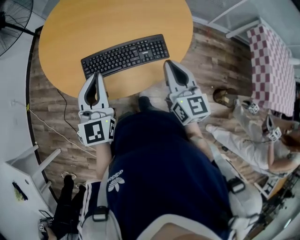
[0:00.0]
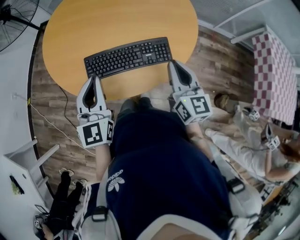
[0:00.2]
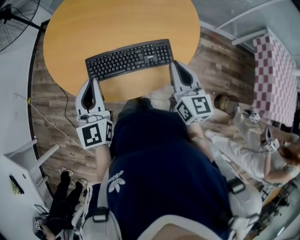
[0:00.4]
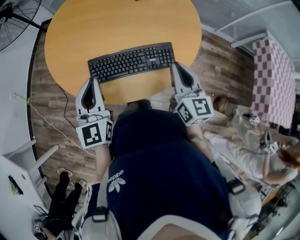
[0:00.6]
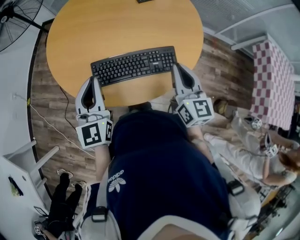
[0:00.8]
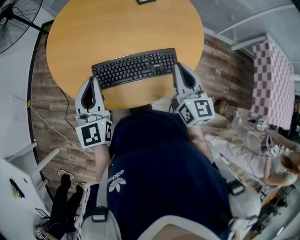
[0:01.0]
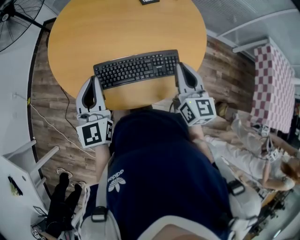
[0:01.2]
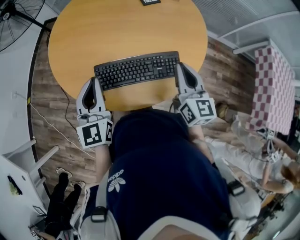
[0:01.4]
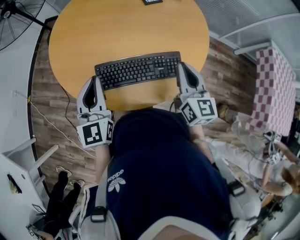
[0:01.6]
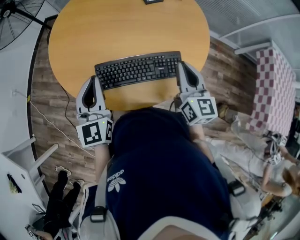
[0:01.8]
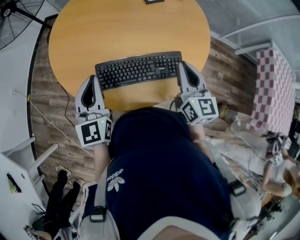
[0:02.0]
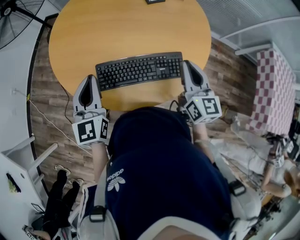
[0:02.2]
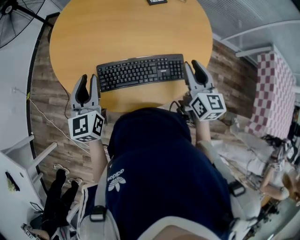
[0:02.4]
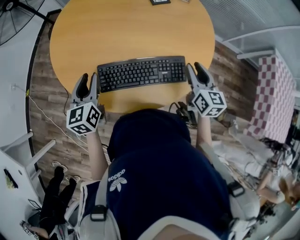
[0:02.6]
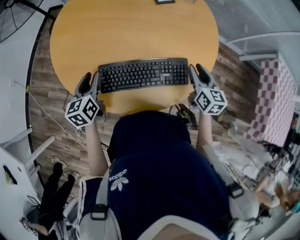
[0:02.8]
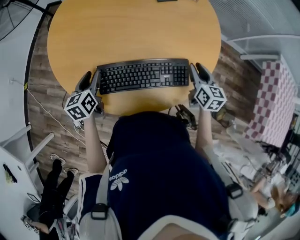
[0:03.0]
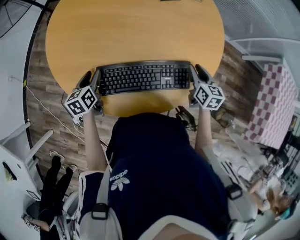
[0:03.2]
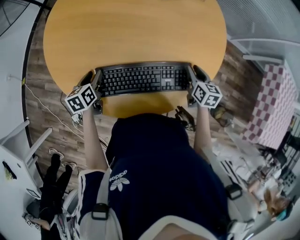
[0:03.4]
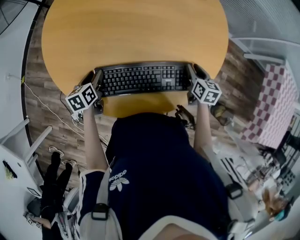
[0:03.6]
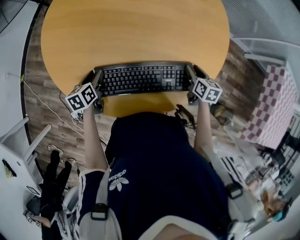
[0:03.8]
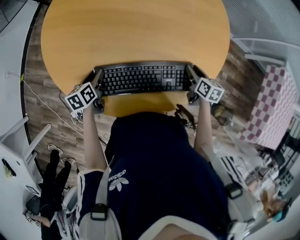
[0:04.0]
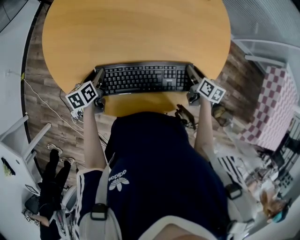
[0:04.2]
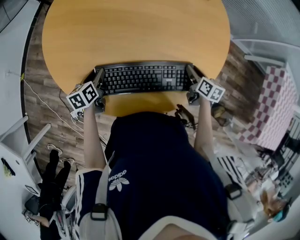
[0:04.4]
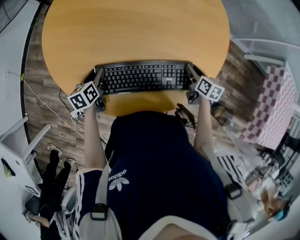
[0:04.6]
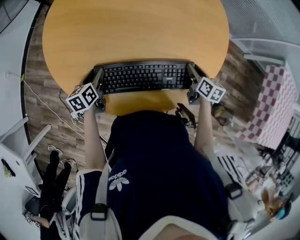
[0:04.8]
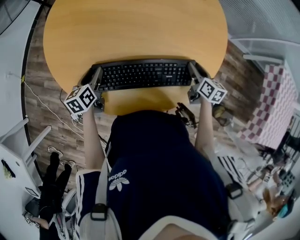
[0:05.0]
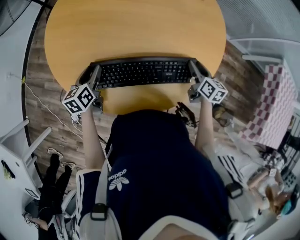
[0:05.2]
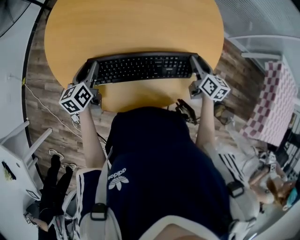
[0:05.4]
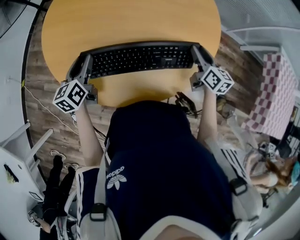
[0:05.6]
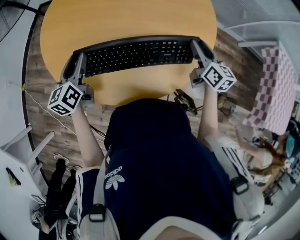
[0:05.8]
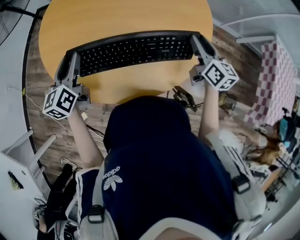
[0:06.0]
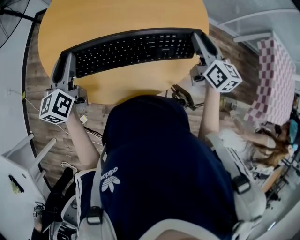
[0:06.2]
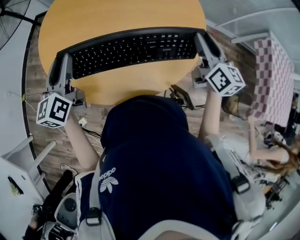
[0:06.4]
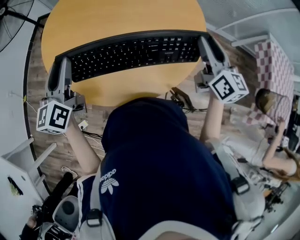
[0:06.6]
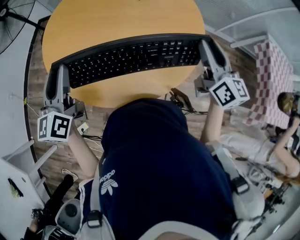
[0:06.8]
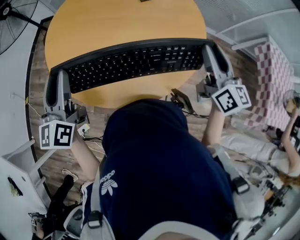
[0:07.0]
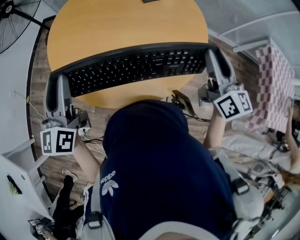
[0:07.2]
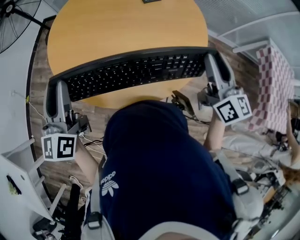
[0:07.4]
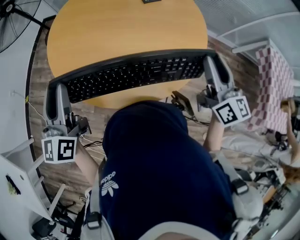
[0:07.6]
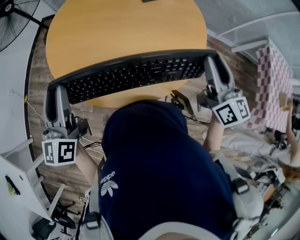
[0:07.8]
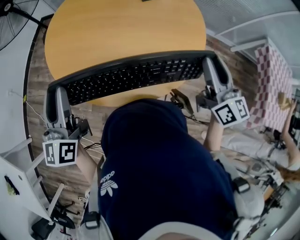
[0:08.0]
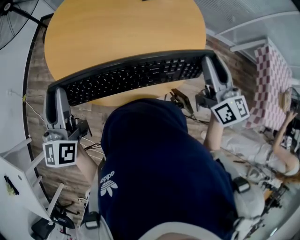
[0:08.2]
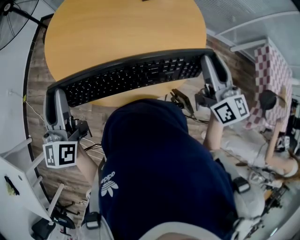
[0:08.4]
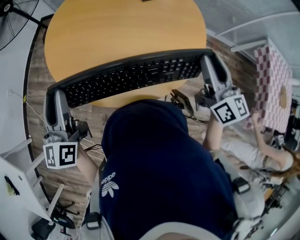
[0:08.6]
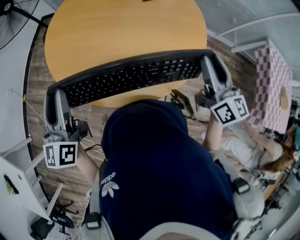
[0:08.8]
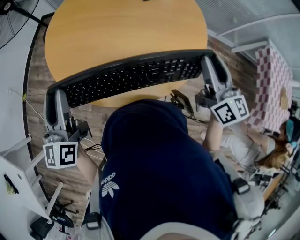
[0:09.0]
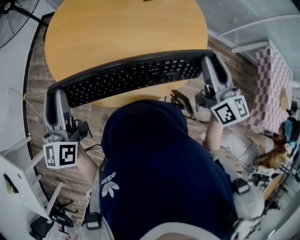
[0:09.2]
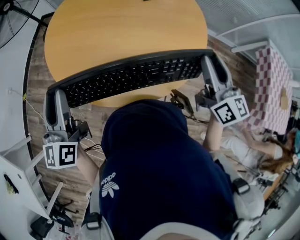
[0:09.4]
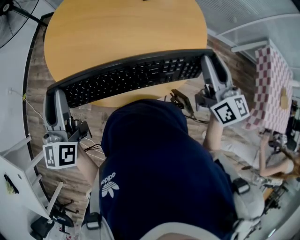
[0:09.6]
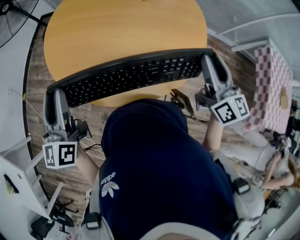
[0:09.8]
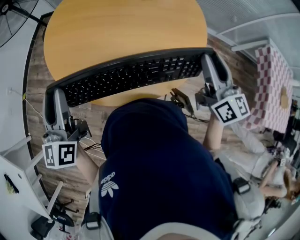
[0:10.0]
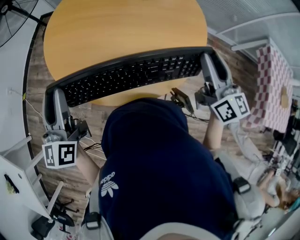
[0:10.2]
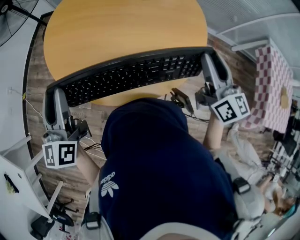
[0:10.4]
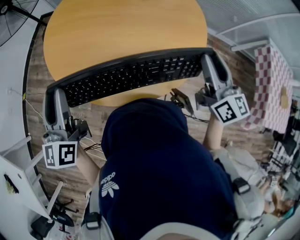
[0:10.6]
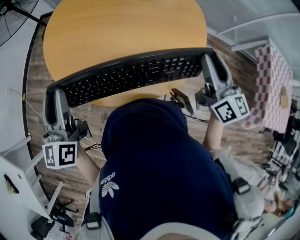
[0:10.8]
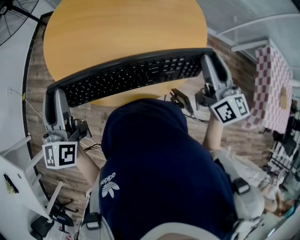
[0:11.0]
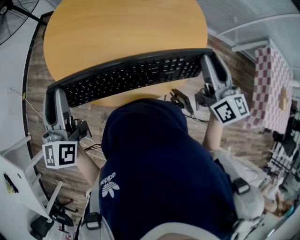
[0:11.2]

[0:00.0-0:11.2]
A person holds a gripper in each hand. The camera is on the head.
0:00.0 to 0:01.6: The right gripper shifts roughly 10 cm forward; the left gripper travels forward and to the left by roughly 10 cm.
0:01.6 to 0:03.2: The left gripper goes about 25 cm downward, angles its fingers downward, by some 30 degrees, and opens up, while the right gripper is displaced downward, forward and to the right by about 20 cm, rotates approximately 30 degrees, and opens.
0:03.2 to 0:04.8: The right gripper heads downward, covering some 5 cm.
0:04.8 to 0:06.4: The grippers both shift upward by approximately 25 cm. The left gripper tilts its fingers some 30 degrees upward, while the right gripper angles its fingers upward, by roughly 30 degrees.
0:06.4 to 0:08.0: The left gripper shifts some 10 cm backward and upward. The right gripper travels backward by approximately 5 cm.
0:08.0 to 0:11.2: Neither gripper changes place.

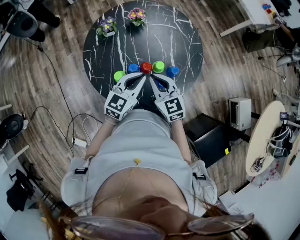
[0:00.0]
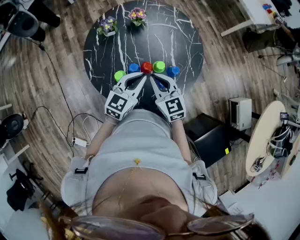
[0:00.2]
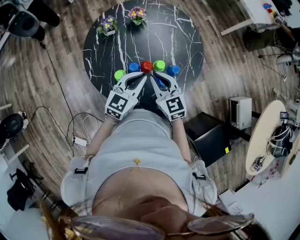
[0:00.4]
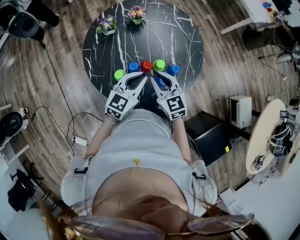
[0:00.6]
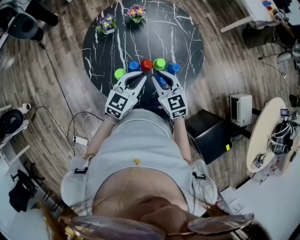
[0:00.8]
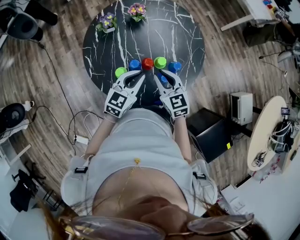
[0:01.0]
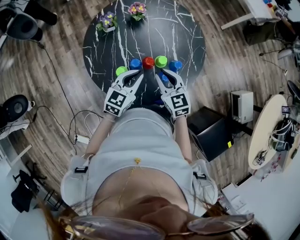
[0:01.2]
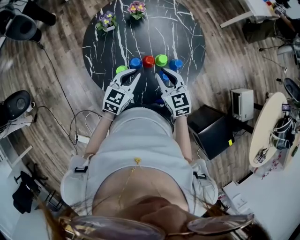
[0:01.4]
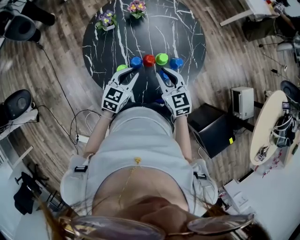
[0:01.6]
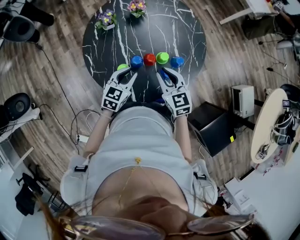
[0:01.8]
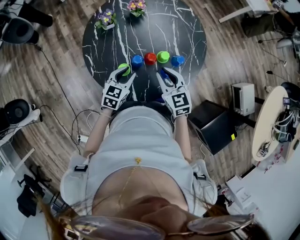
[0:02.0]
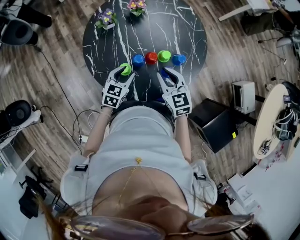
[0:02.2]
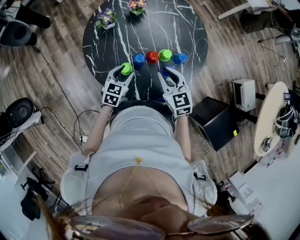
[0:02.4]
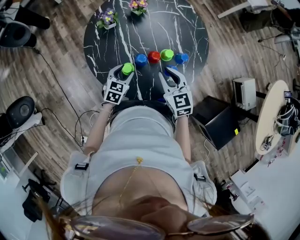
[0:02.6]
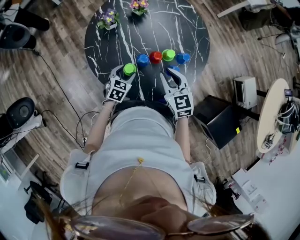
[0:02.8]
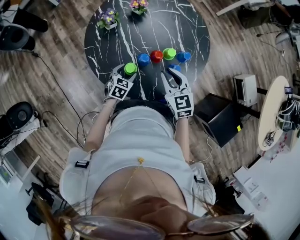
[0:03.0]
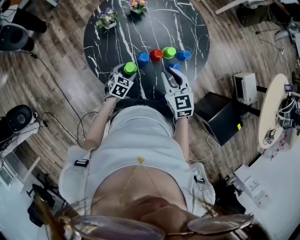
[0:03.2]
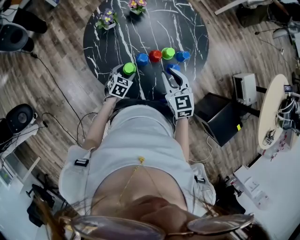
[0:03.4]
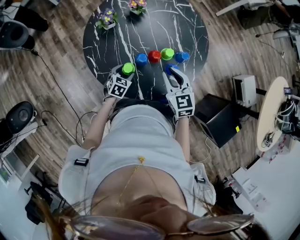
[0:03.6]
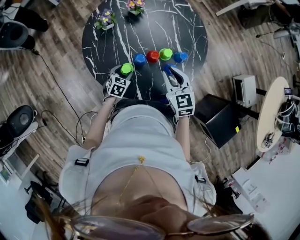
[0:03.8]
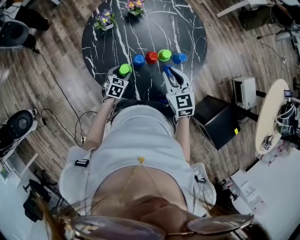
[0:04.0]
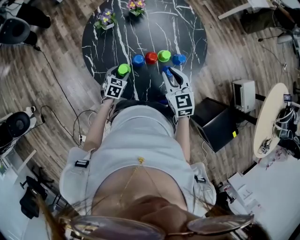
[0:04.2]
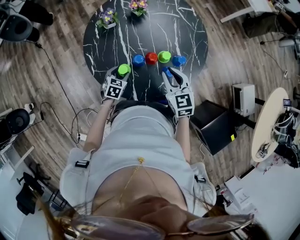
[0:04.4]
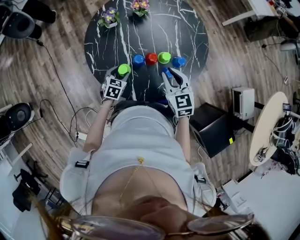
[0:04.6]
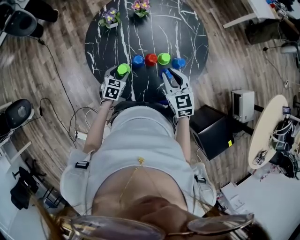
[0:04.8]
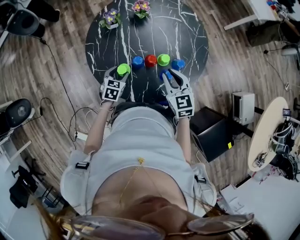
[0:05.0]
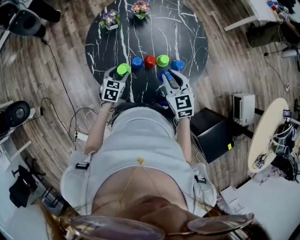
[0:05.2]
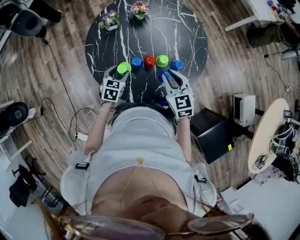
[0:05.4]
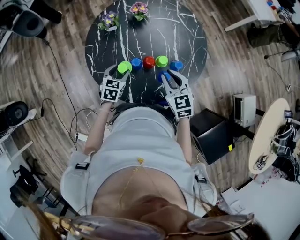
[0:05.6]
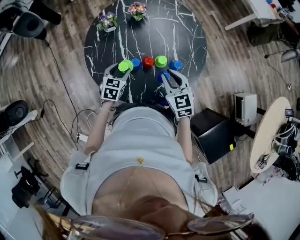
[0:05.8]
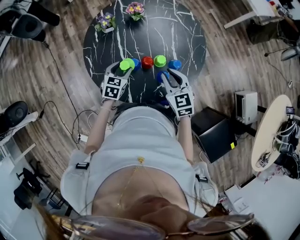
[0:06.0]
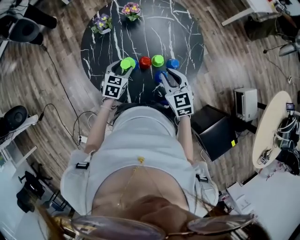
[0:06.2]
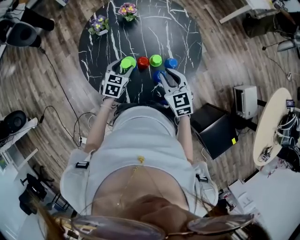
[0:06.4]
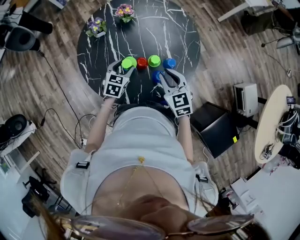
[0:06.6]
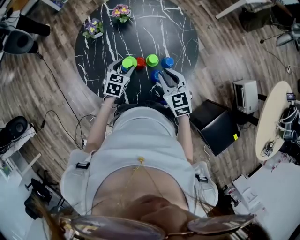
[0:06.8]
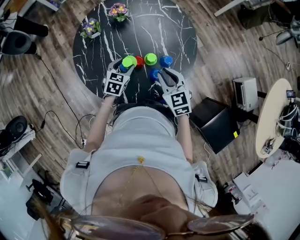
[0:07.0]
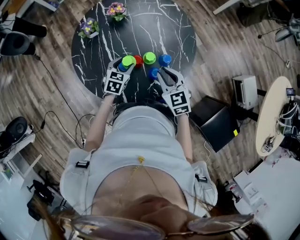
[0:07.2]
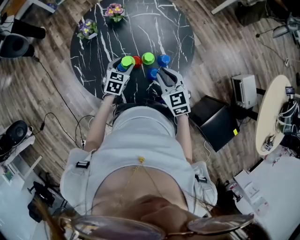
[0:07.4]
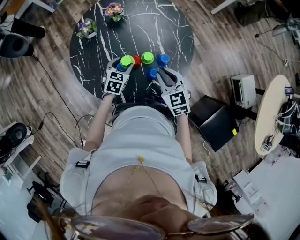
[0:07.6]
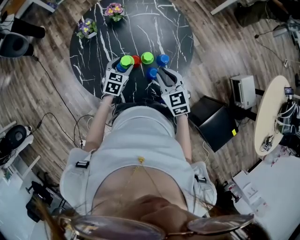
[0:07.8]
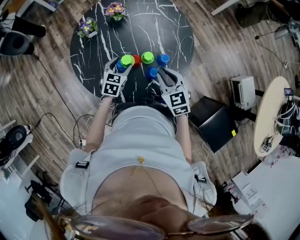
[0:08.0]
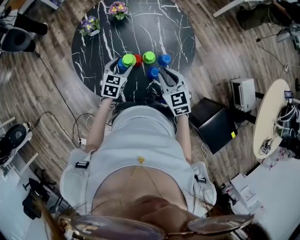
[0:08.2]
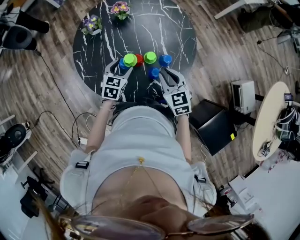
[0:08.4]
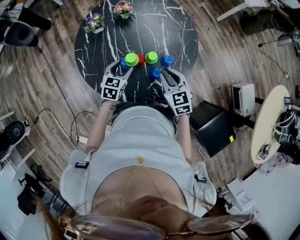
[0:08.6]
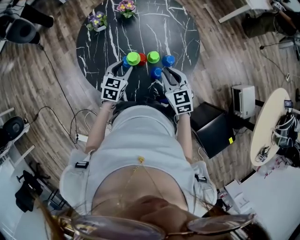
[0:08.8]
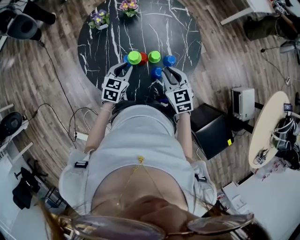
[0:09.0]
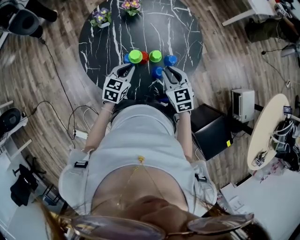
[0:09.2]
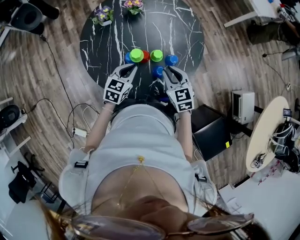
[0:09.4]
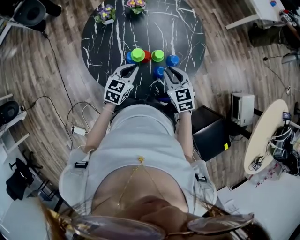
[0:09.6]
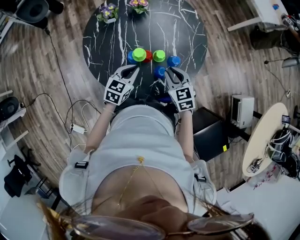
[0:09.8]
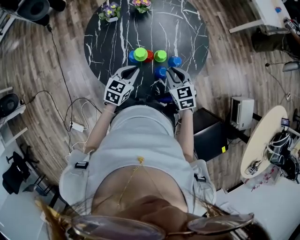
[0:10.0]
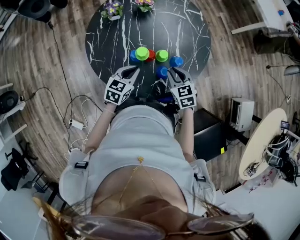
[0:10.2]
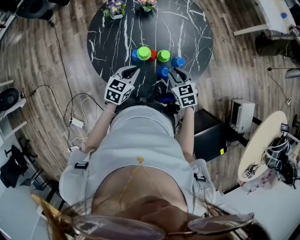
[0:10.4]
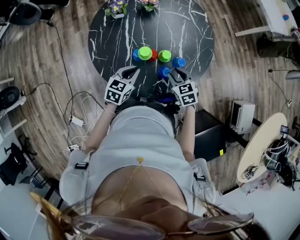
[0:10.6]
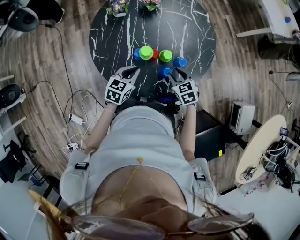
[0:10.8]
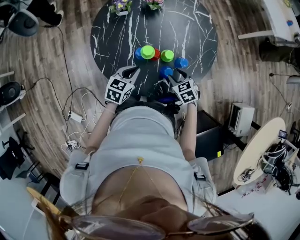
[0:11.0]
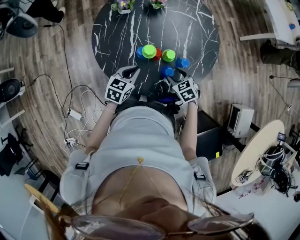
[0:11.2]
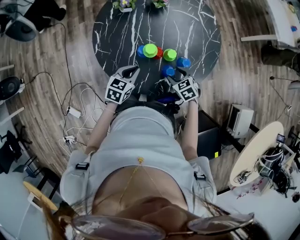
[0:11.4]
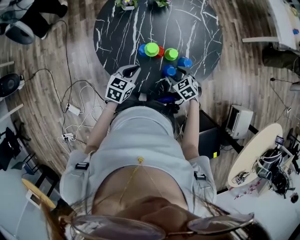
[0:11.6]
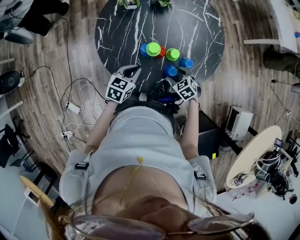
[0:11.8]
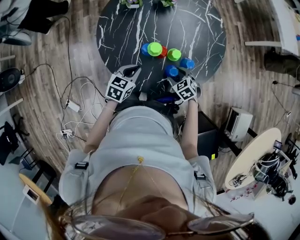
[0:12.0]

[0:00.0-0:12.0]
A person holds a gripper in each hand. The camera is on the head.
0:00.0 to 0:01.6: The left gripper shifts about 10 cm downward and to the left.
0:01.6 to 0:03.0: The left gripper moves downward and to the left, some 15 cm, changes its angle by some 20 degrees, and opens its fingers.
0:03.0 to 0:04.4: The grippers stay close to where they were, moving slightly.
0:04.4 to 0:06.0: The left gripper moves upward, some 10 cm.
0:06.0 to 0:07.6: The left gripper goes approximately 5 cm to the right.
0:07.6 to 0:09.0: The left gripper changes place by about 5 cm, and closes up.
0:09.0 to 0:10.4: The right gripper moves downward, approximately 5 cm.
0:10.4 to 0:12.0: The right gripper goes some 10 cm downward, changes its angle by about 30 degrees, and opens up.

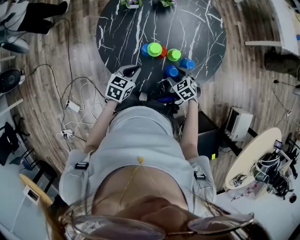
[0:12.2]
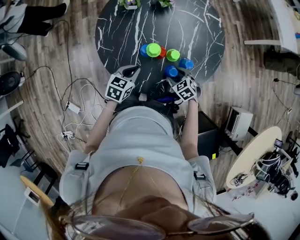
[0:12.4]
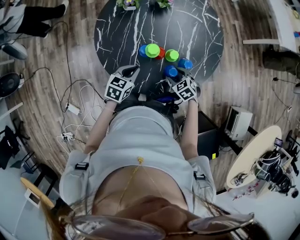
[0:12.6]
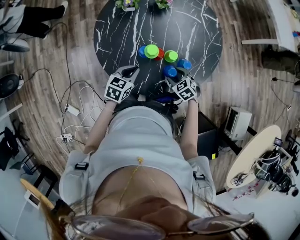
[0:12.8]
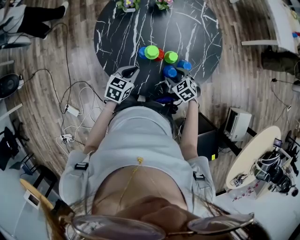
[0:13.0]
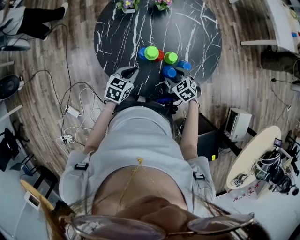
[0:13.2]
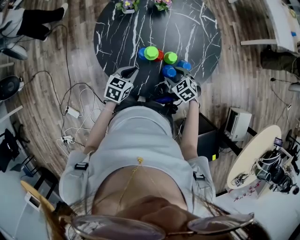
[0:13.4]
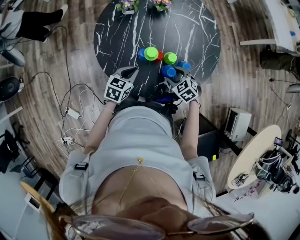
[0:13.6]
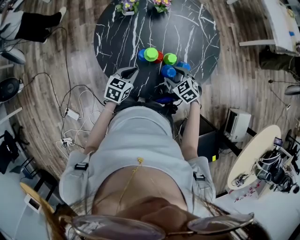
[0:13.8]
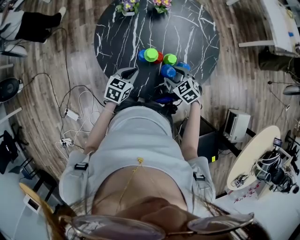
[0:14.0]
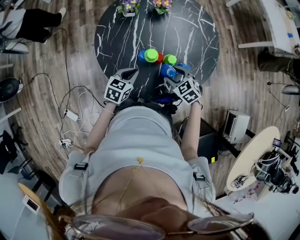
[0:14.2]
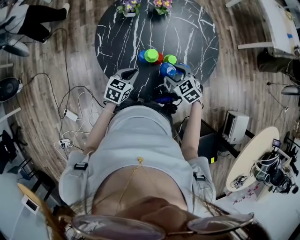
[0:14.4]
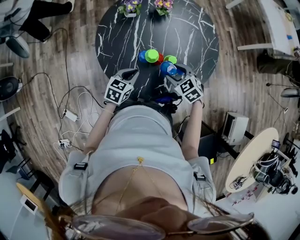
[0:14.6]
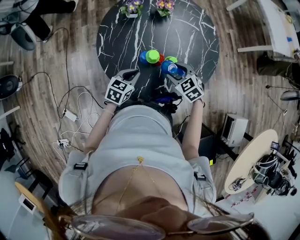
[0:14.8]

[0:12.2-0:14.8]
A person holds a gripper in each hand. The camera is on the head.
0:12.2 to 0:13.4: There are only small adjustments of the grippers.
0:13.4 to 0:14.8: The right gripper is displaced upward by some 10 cm.
